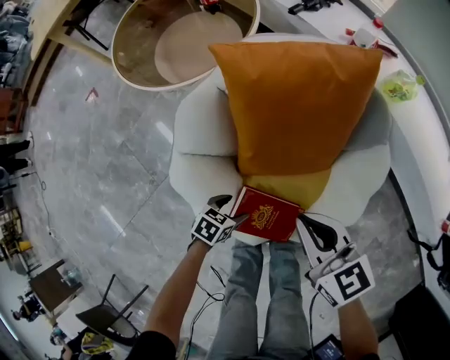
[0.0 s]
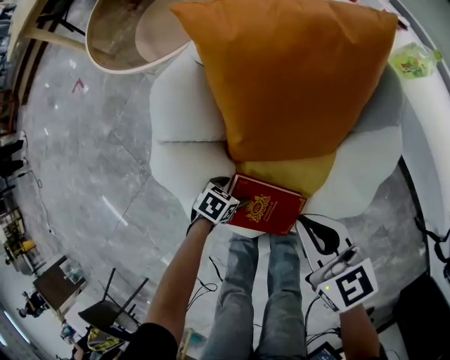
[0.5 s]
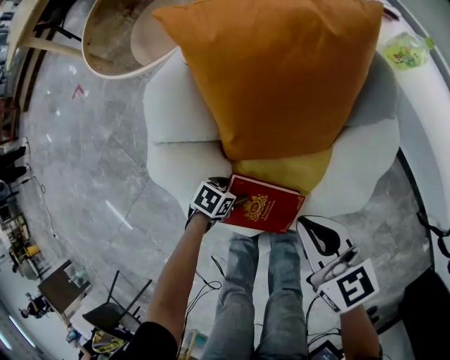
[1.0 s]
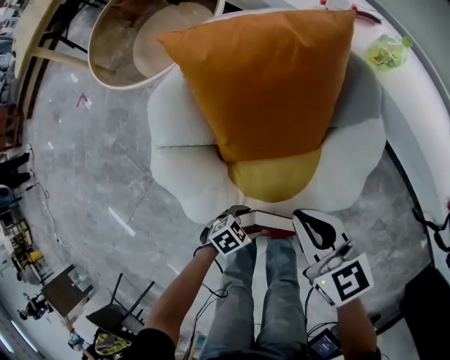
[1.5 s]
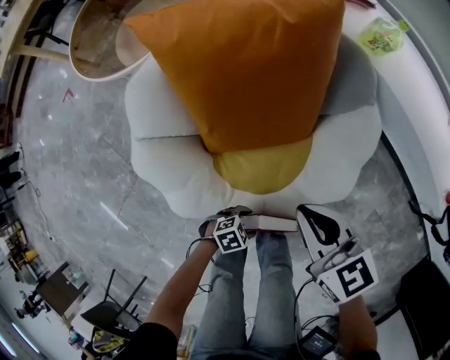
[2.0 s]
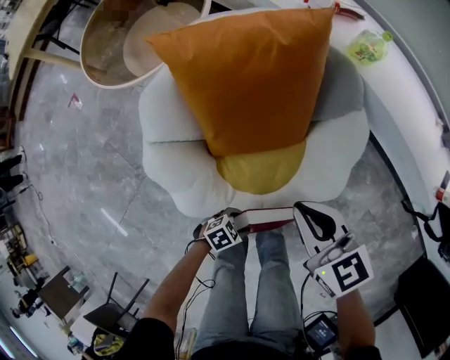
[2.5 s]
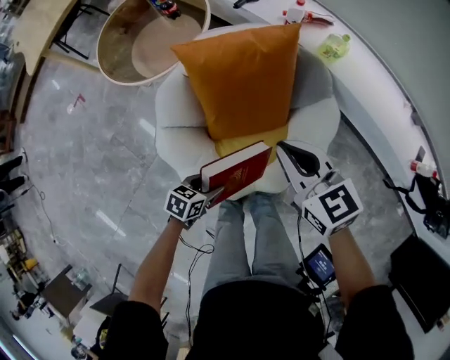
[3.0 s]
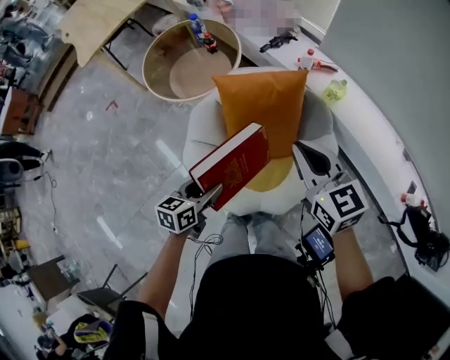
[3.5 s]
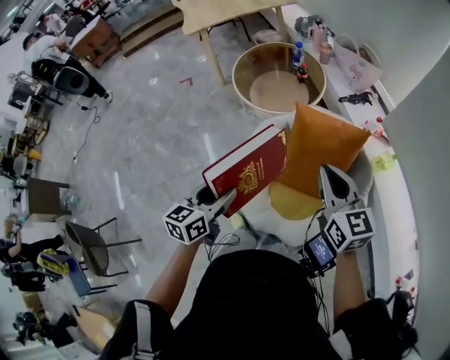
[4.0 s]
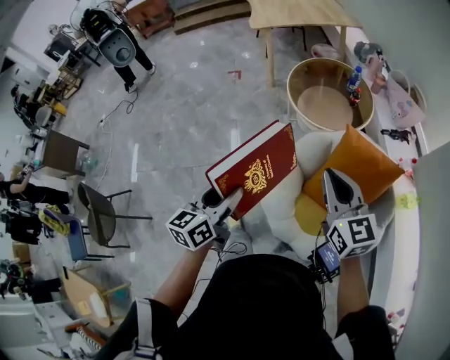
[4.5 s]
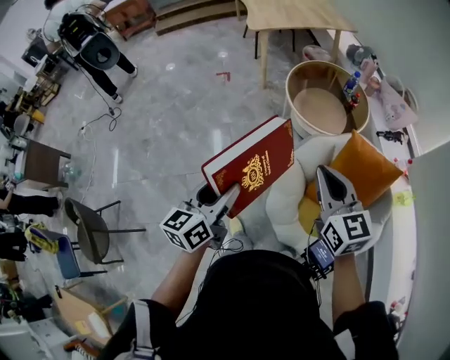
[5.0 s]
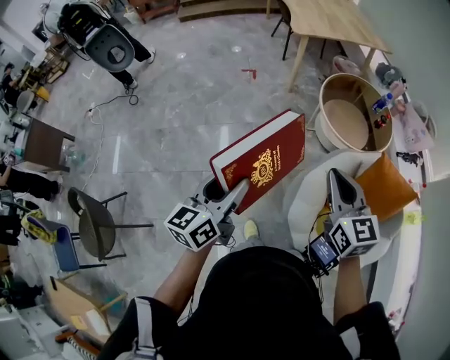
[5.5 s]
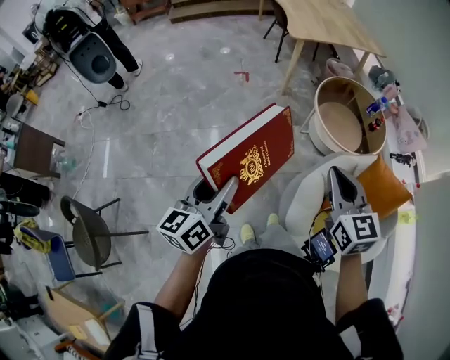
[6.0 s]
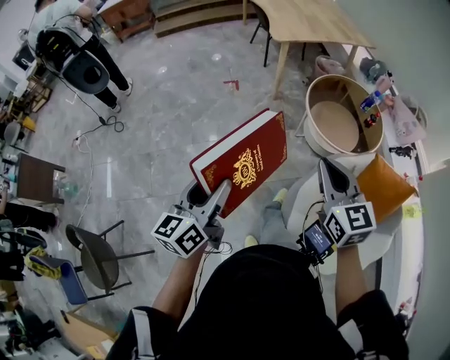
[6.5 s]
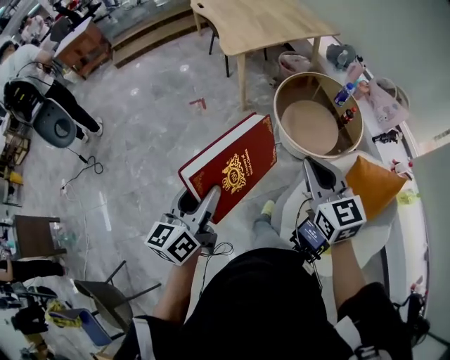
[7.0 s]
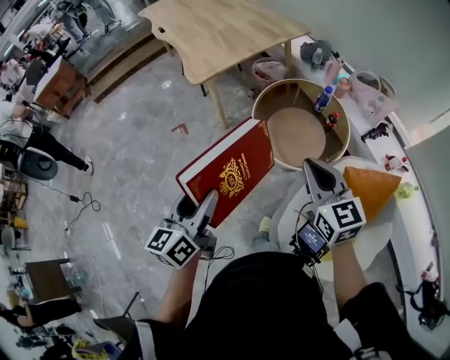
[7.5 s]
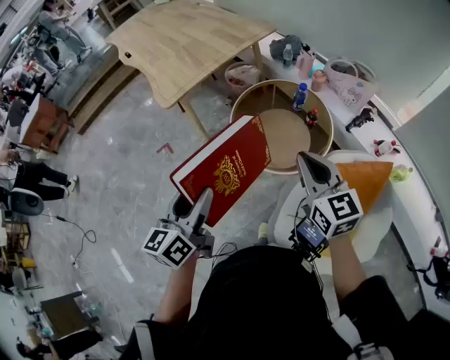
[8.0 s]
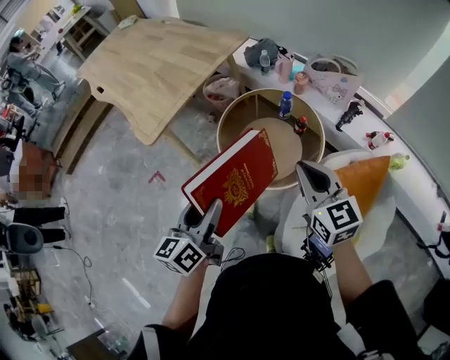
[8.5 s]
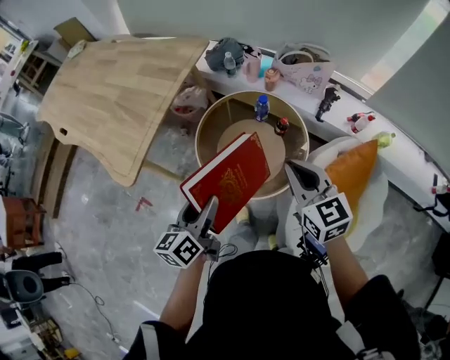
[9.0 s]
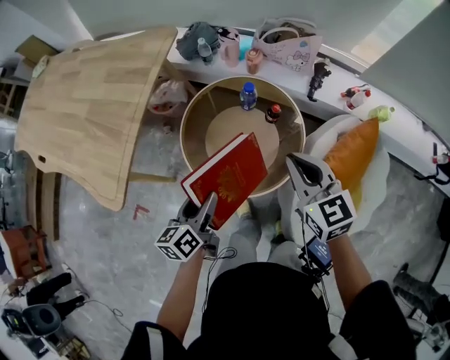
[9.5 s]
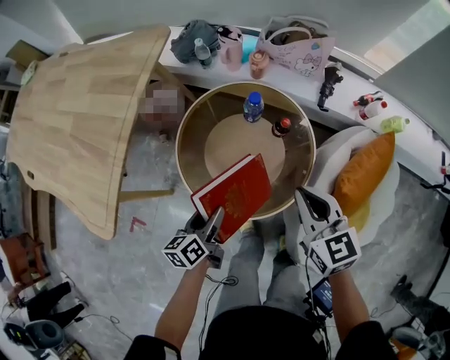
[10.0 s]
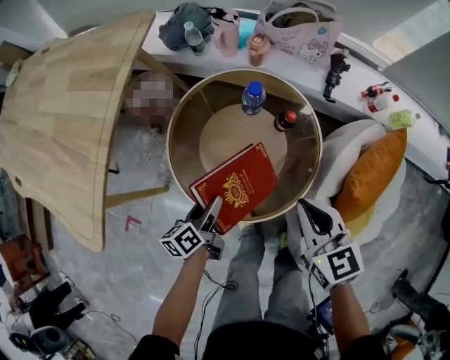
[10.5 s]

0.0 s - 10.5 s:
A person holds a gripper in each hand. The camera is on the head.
0.0 s - 2.0 s: The right gripper changes place by approximately 10 cm; the left gripper swings up and down, approximately 10 cm each way, with 2 reversals, and swivels some 40 degrees.
2.0 s - 4.0 s: The left gripper heads upward, covering approximately 60 cm, and rotates about 100 degrees; the right gripper heads upward, covering about 40 cm, and changes its angle by about 30 degrees.
4.0 s - 6.5 s: Both grippers are carried to the left, some 50 cm. The left gripper rotates some 30 degrees.
6.5 s - 8.5 s: Both grippers are carried about 50 cm. The right gripper swivels roughly 30 degrees; the left gripper rotates about 30 degrees.
8.5 s - 10.5 s: The left gripper heads downward and forward, covering about 40 cm, and rotates approximately 40 degrees. Meanwhile the right gripper is displaced downward and forward by roughly 25 cm, and rotates some 30 degrees.

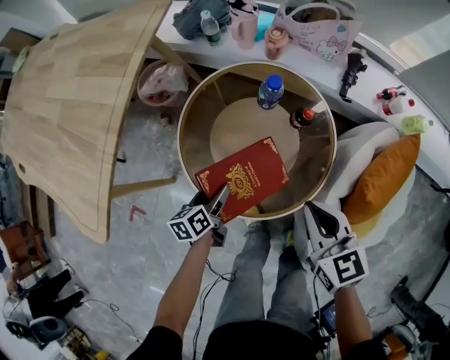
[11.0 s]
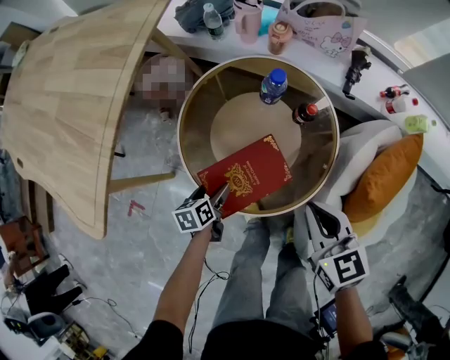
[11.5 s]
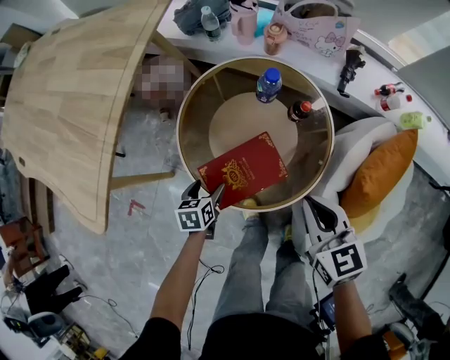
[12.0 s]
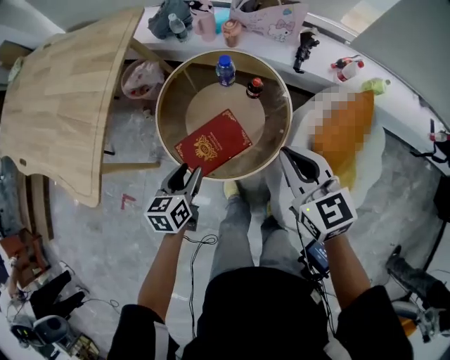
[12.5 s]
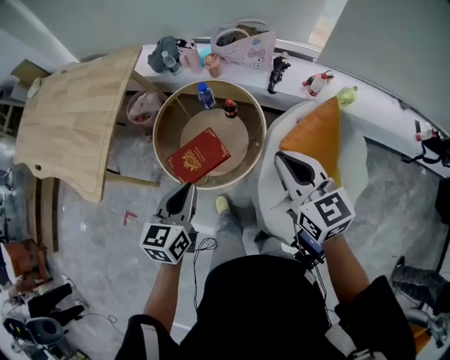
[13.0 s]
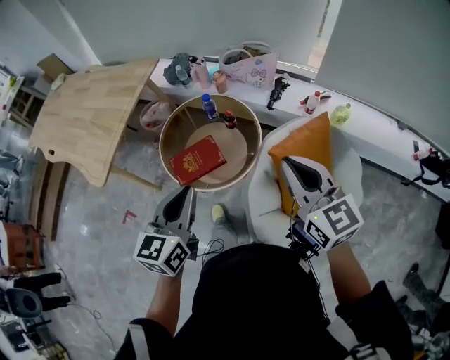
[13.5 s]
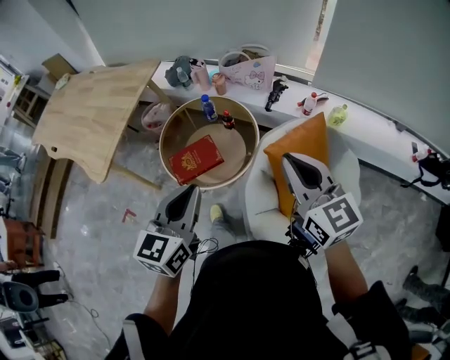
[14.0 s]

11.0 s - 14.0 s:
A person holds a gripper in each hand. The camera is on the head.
11.0 s - 12.5 s: The two grippers go approximately 15 cm upward. The left gripper turns by some 30 degrees.
12.5 s - 14.0 s: The two grippers go roughly 40 cm upward, to the right and backward. The right gripper turns by some 20 degrees, while the left gripper changes its angle by approximately 30 degrees, and closes its fingers.

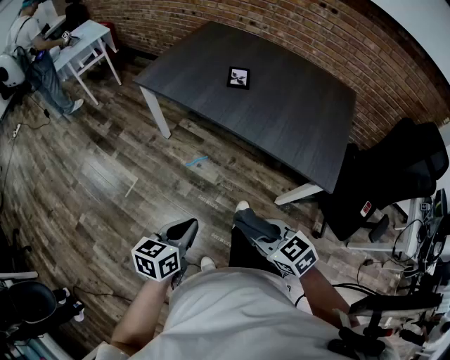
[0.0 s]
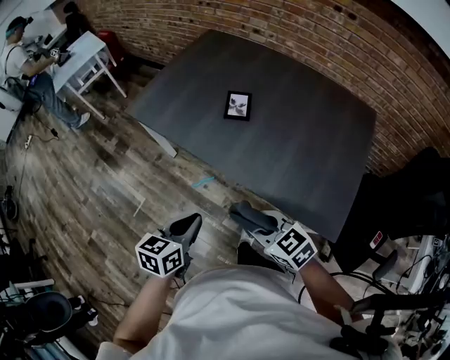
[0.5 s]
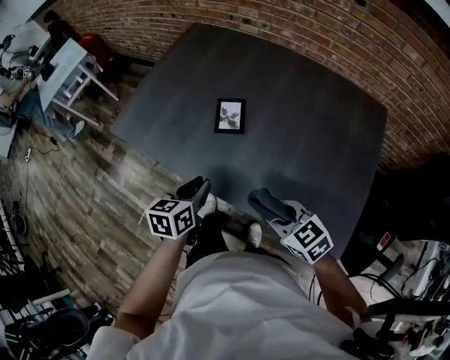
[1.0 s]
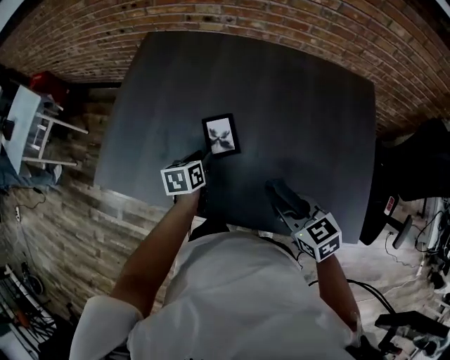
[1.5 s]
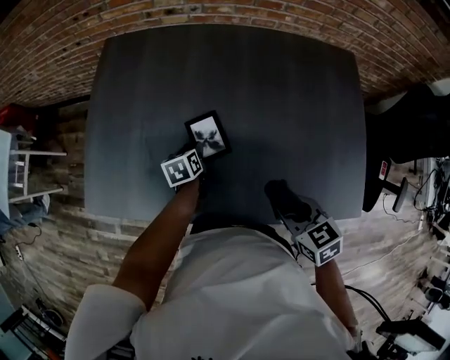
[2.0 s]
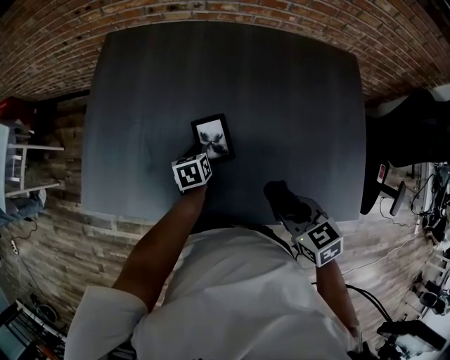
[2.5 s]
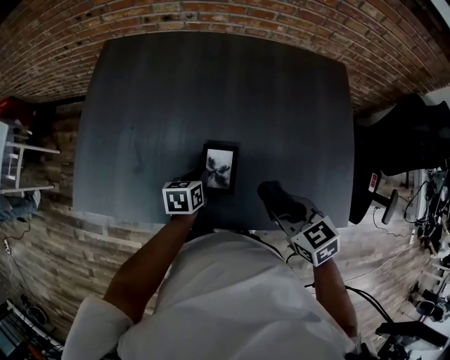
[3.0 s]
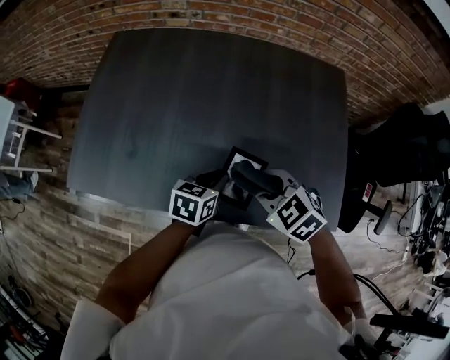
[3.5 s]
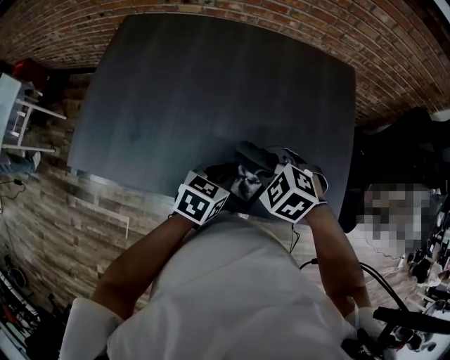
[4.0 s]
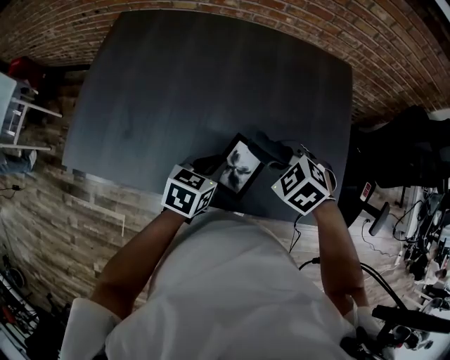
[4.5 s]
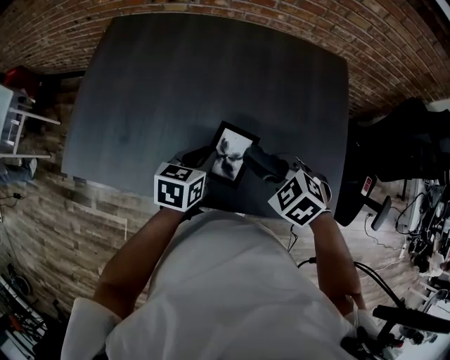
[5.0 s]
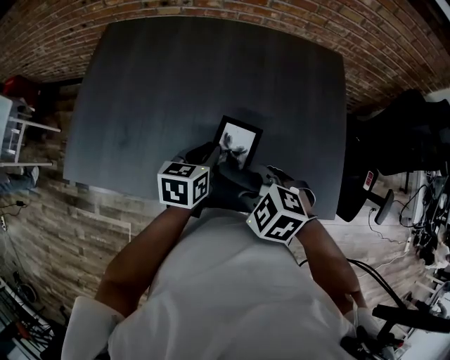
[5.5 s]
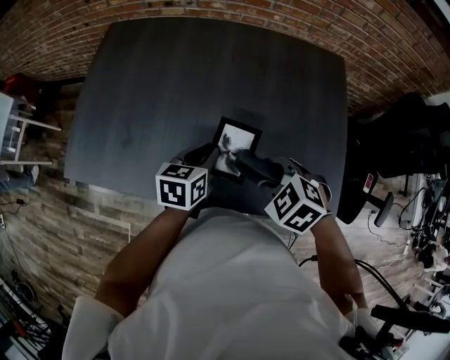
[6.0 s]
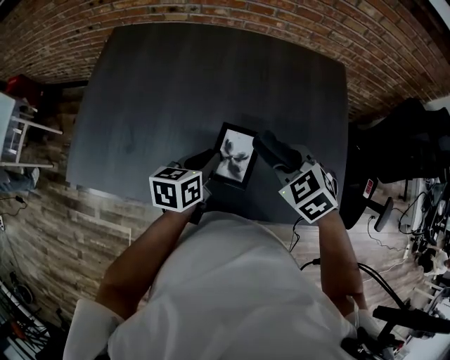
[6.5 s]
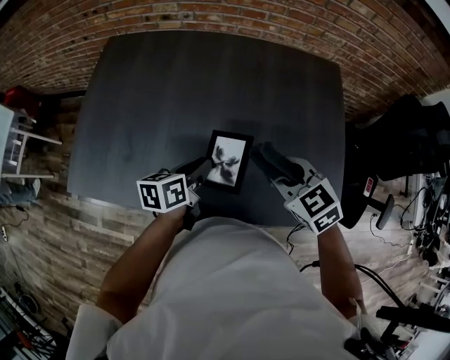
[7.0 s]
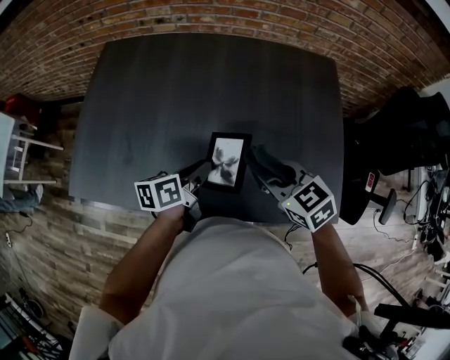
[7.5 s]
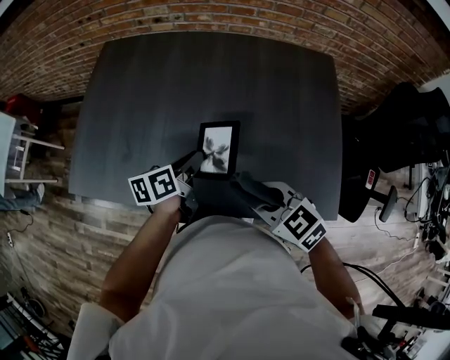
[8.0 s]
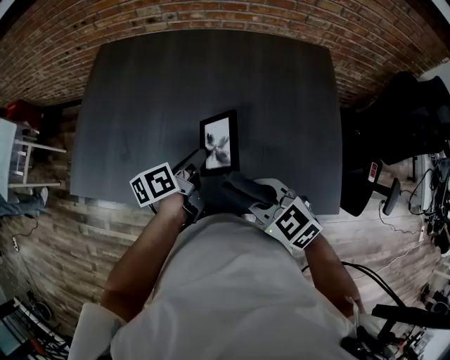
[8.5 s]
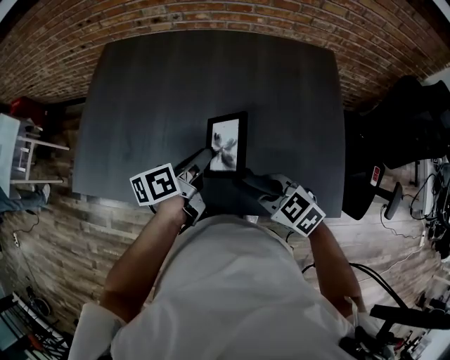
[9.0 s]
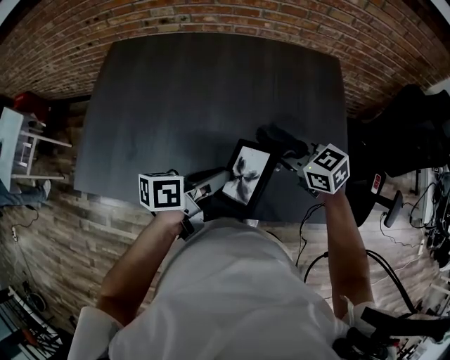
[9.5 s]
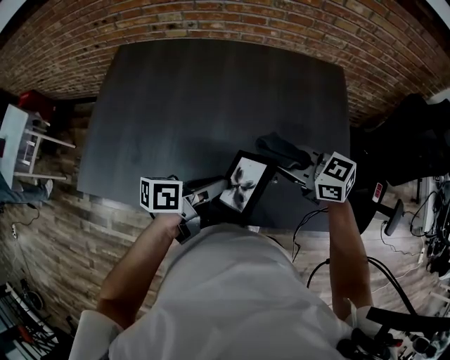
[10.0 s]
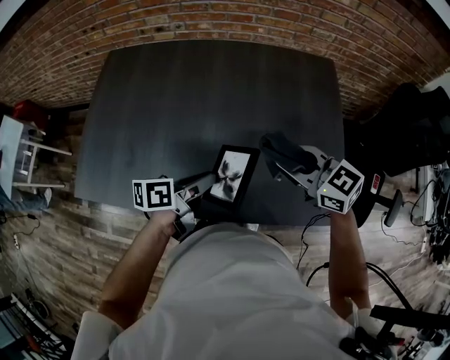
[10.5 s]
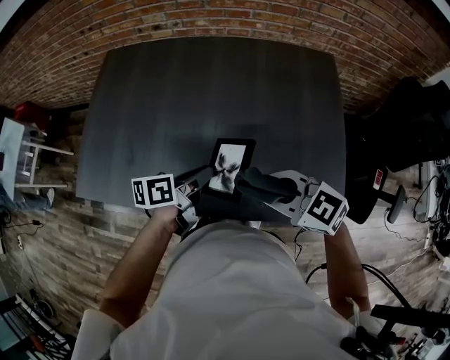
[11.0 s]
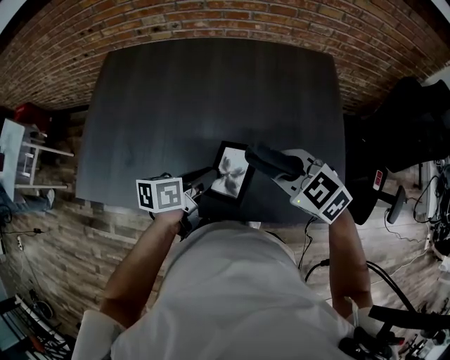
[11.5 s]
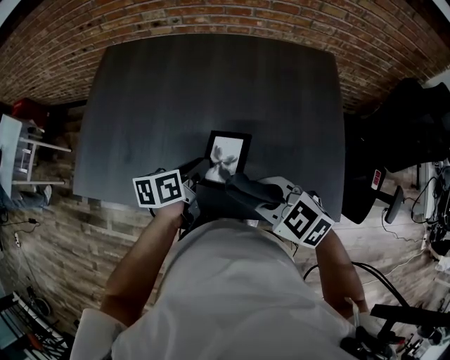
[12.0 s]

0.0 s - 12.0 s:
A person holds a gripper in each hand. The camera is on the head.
0.0 s - 2.0 s: Both grippers are carried some 60 cm. The left gripper changes its angle by some 20 degrees, and opens its fingers. The right gripper rotates some 40 degrees.
2.0 s - 4.0 s: The right gripper changes place by some 5 cm, and twists some 50 degrees counterclockwise, seen from behind. The left gripper shifts some 30 cm to the right, backward and upward, and rotates roughly 40 degrees.
4.0 s - 6.0 s: The left gripper heads forward, covering some 5 cm.
6.0 s - 8.0 s: The left gripper turns by about 30 degrees, while the right gripper goes about 5 cm backward, and rotates approximately 30 degrees.
8.0 s - 10.0 s: The left gripper moves roughly 10 cm, and turns by about 20 degrees, while the right gripper moves some 10 cm, and rotates about 20 degrees.
10.0 s - 12.0 s: The left gripper shifts by approximately 5 cm, and swivels roughly 20 degrees. Meanwhile the right gripper shifts by about 10 cm, and swivels approximately 20 degrees.

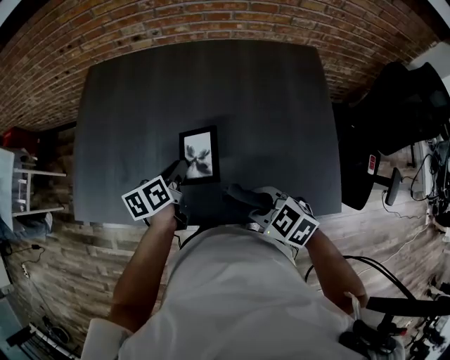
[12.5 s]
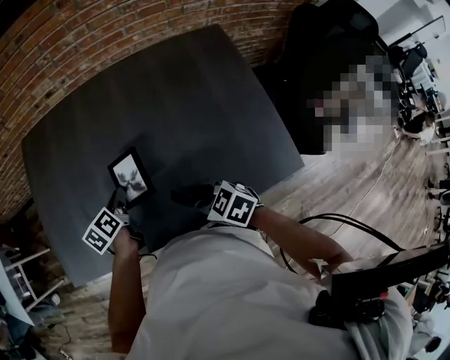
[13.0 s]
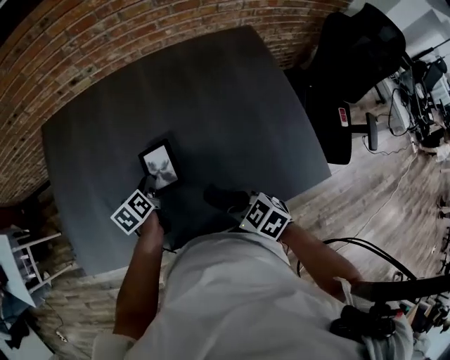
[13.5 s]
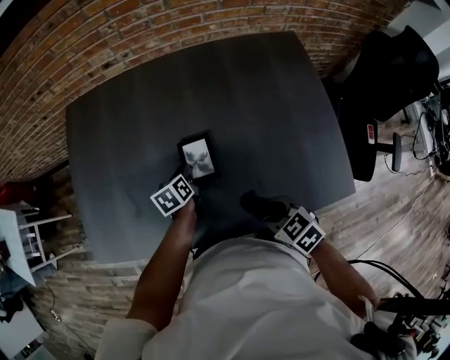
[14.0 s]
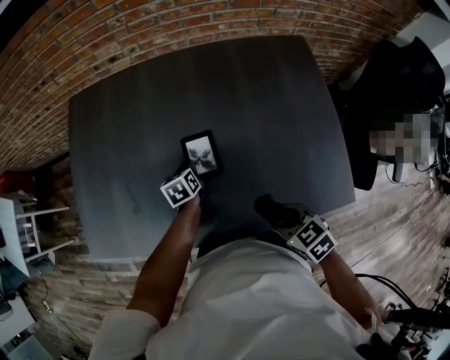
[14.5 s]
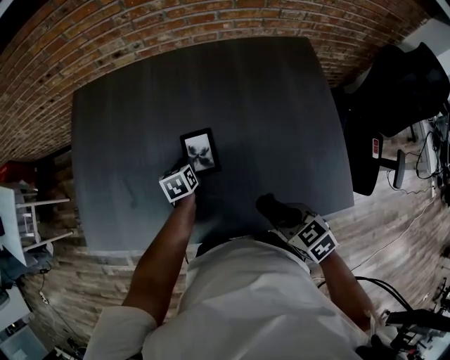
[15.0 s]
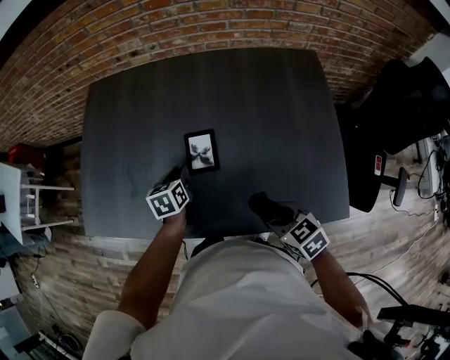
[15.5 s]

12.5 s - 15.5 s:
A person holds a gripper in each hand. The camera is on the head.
12.5 s - 14.0 s: The left gripper heads downward and forward, covering about 15 cm. The right gripper changes its angle by roughly 20 degrees.
14.0 s - 15.5 s: The left gripper shifts by some 5 cm; the right gripper travels to the right by some 5 cm.
